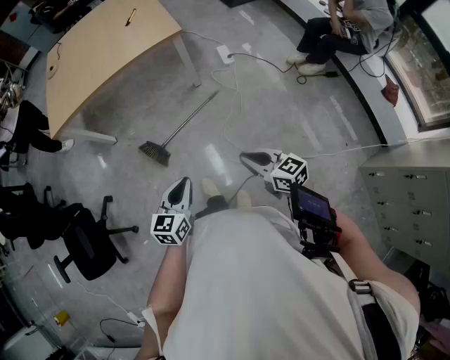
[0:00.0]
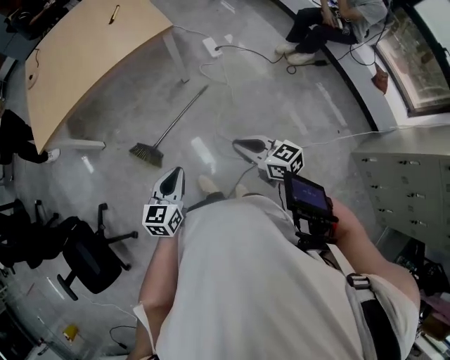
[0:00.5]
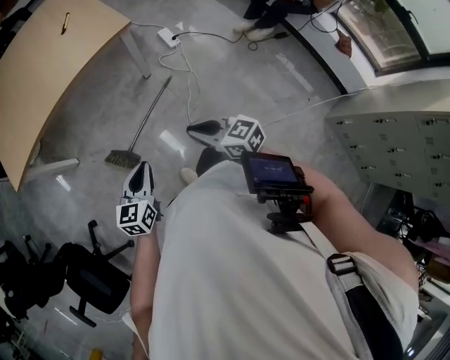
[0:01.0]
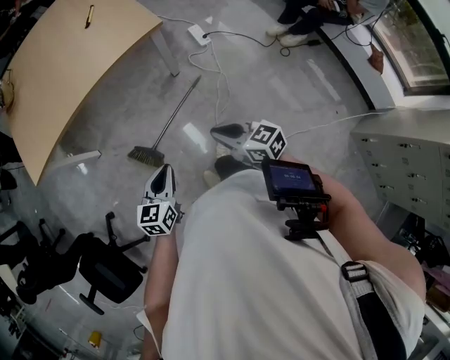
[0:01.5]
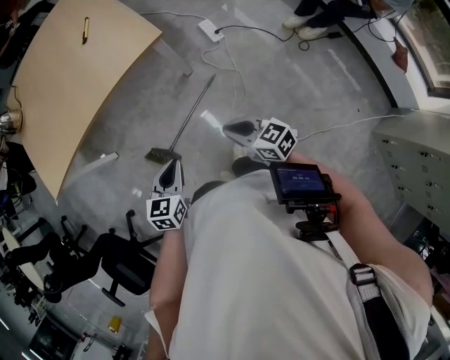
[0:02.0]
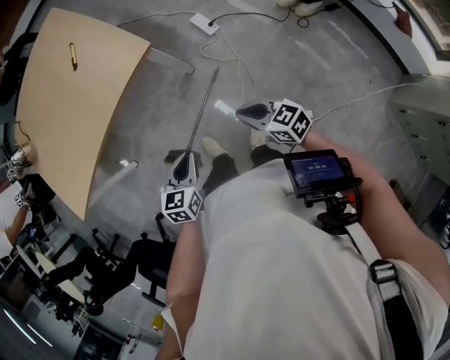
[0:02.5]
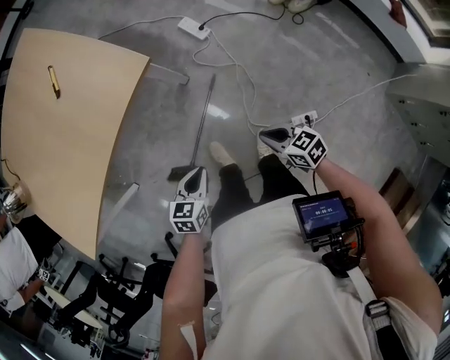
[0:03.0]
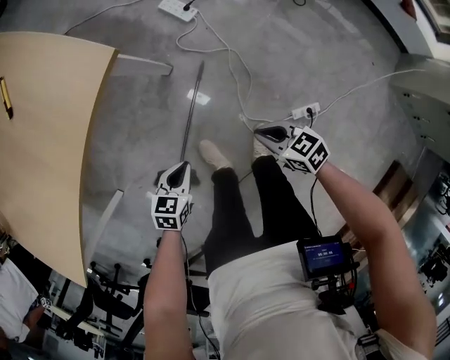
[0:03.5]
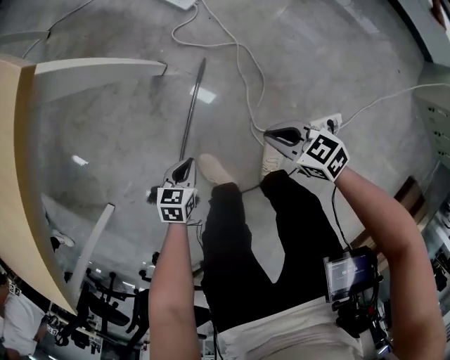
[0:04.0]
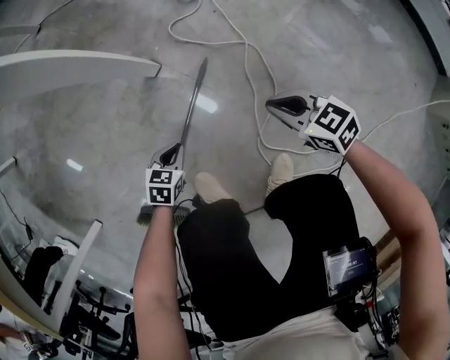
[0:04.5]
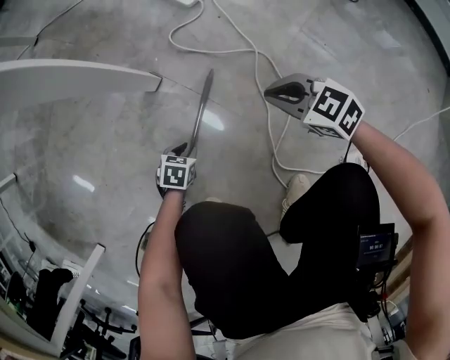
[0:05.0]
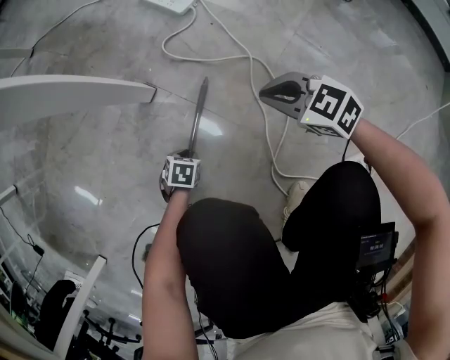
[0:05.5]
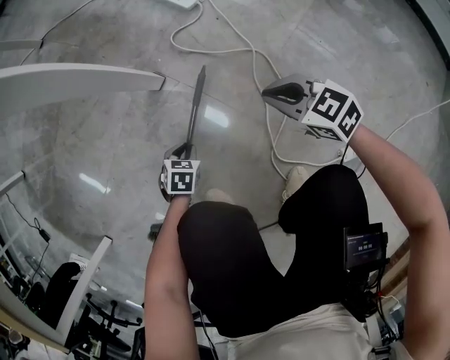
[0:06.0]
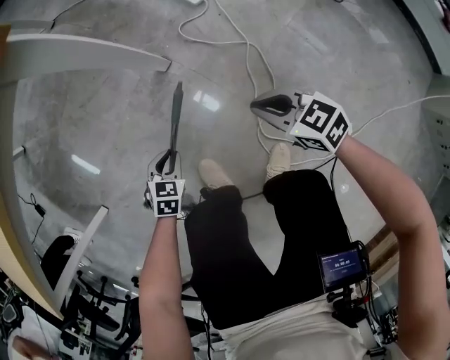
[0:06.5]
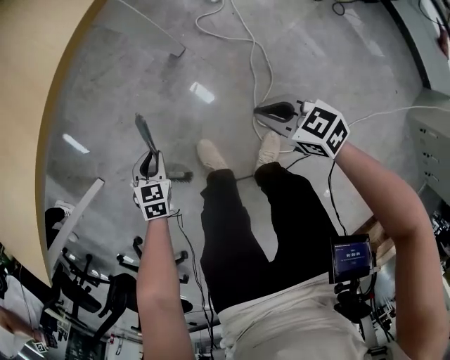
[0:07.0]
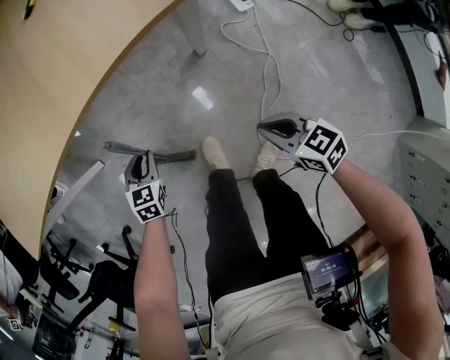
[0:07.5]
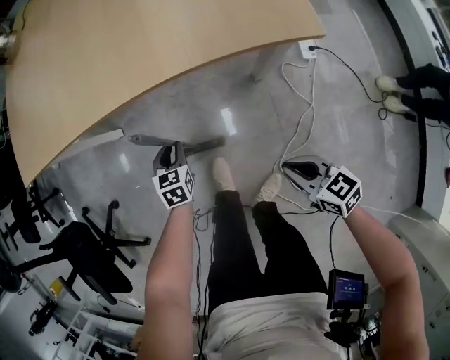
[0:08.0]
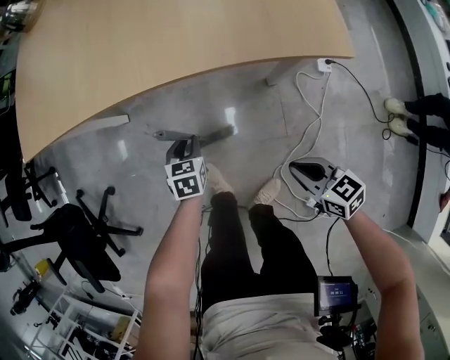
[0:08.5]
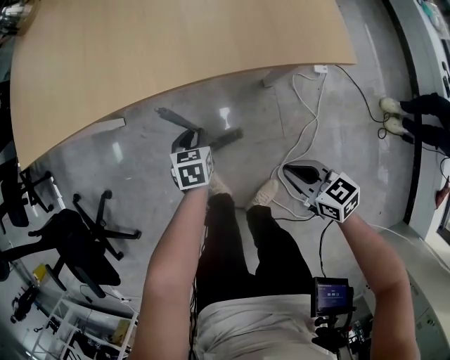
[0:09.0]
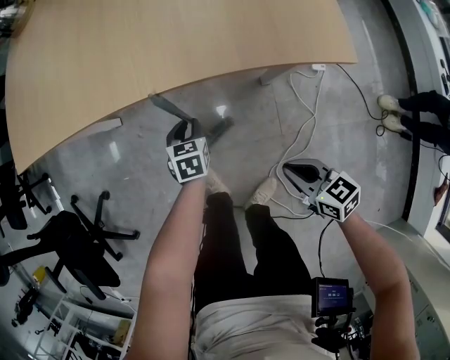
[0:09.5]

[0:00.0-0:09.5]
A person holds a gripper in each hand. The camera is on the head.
0:00.0 to 0:02.0: Both grippers move forward, about 25 cm.
0:02.0 to 0:04.0: The two grippers go approximately 35 cm downward. The right gripper changes its angle by approximately 20 degrees; the left gripper changes its angle by some 40 degrees.
0:04.0 to 0:05.5: The left gripper heads downward, covering roughly 30 cm, and changes its angle by roughly 20 degrees. The right gripper goes about 20 cm downward, and rotates roughly 20 degrees.
0:05.5 to 0:07.5: The left gripper moves upward, about 20 cm, and rotates roughly 40 degrees. Meanwhile the right gripper goes some 5 cm upward, and swivels about 20 degrees.
0:07.5 to 0:09.5: The left gripper changes place by about 5 cm, and rotates approximately 30 degrees, while the right gripper shifts approximately 5 cm to the left.

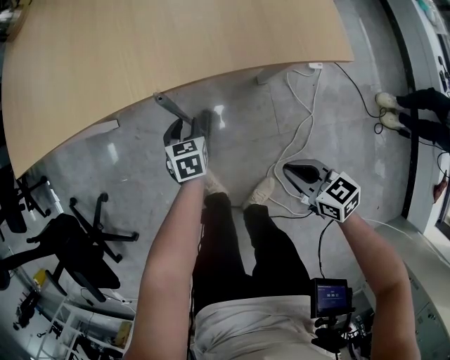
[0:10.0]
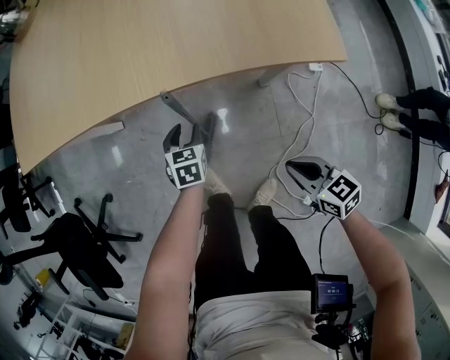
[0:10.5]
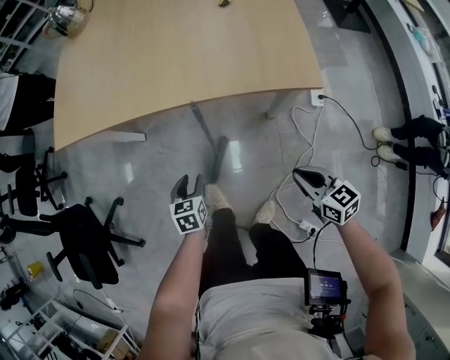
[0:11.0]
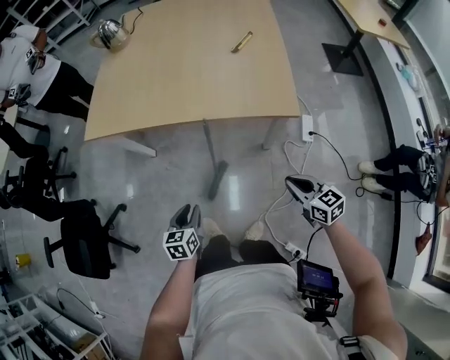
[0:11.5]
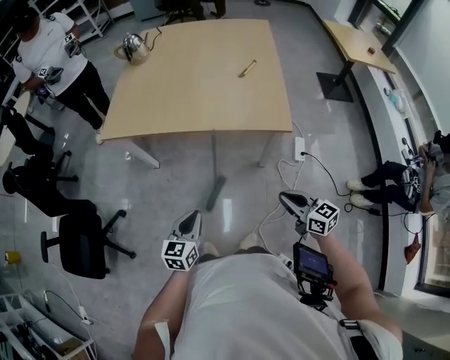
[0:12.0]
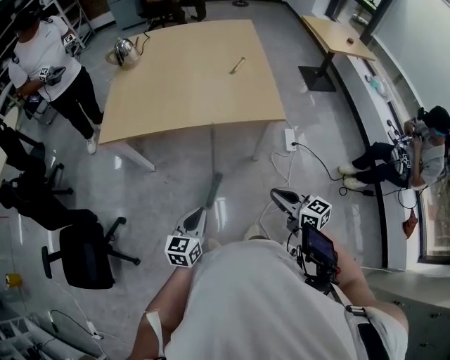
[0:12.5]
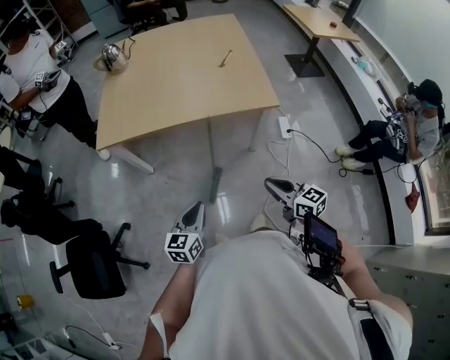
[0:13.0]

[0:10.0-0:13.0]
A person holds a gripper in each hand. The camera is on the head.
0:10.0 to 0:11.5: The left gripper shifts about 30 cm backward, upward and to the left, and rotates some 20 degrees. Meanwhile the right gripper goes approximately 15 cm upward.
0:11.5 to 0:13.0: The right gripper moves to the left, backward and upward, about 20 cm. The left gripper travels upward and backward by roughly 15 cm, swivels roughly 30 degrees, and closes.

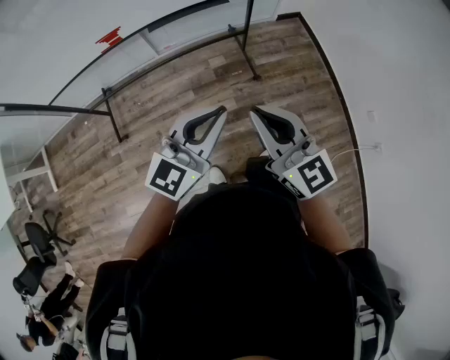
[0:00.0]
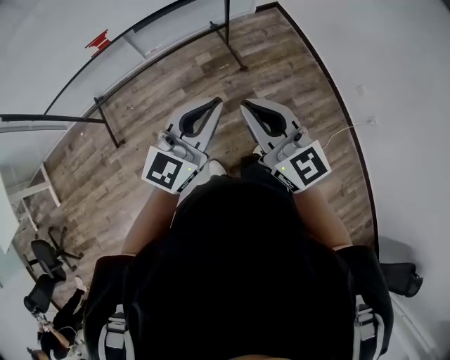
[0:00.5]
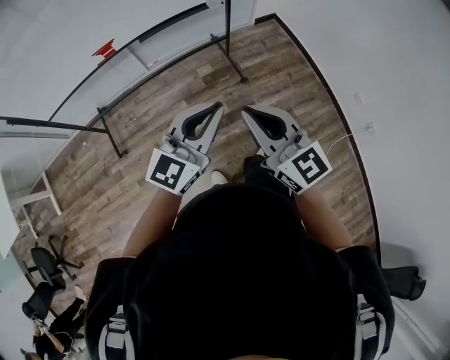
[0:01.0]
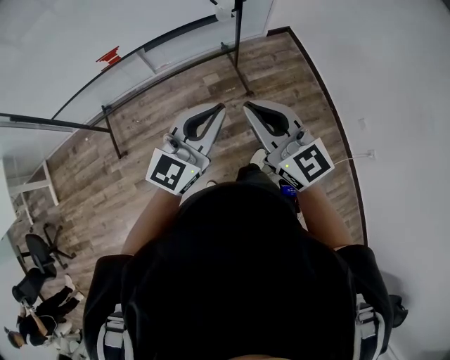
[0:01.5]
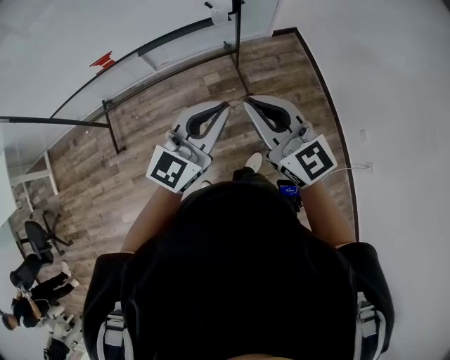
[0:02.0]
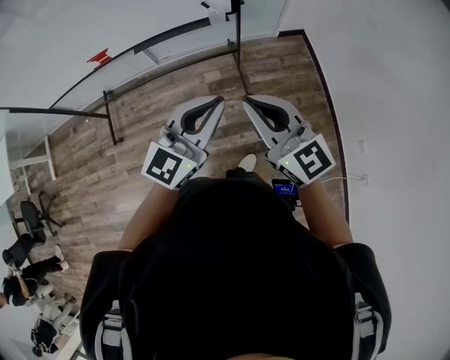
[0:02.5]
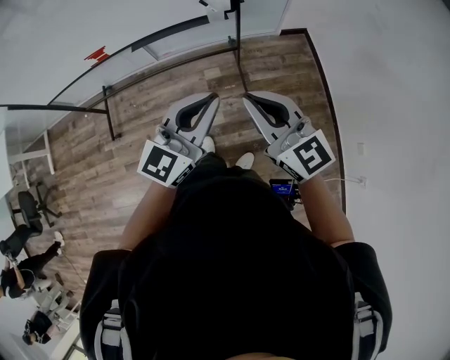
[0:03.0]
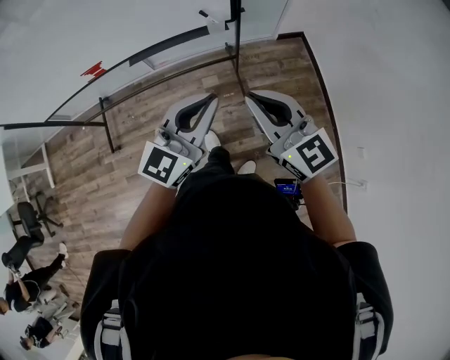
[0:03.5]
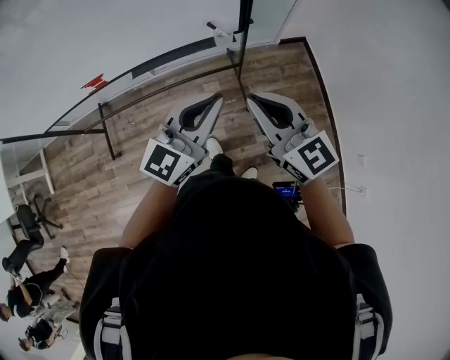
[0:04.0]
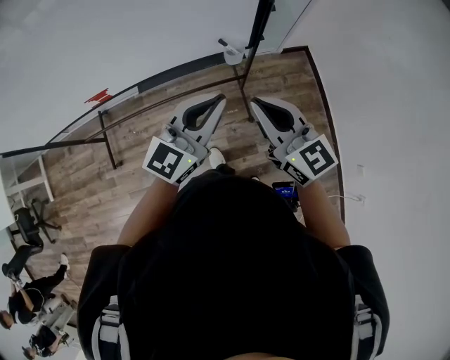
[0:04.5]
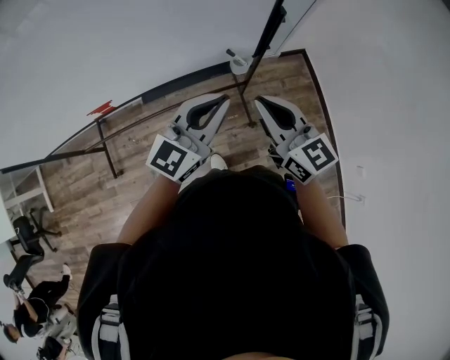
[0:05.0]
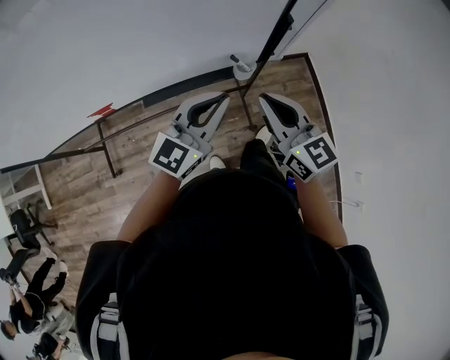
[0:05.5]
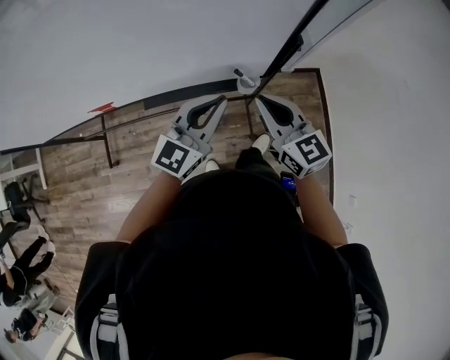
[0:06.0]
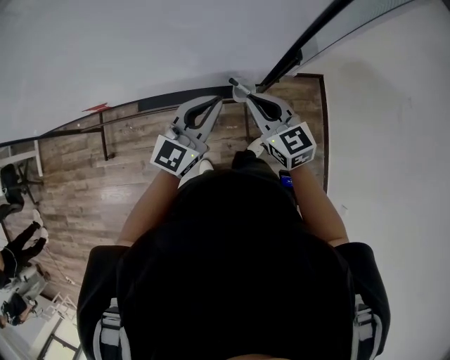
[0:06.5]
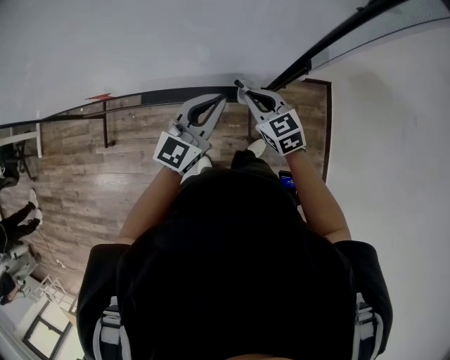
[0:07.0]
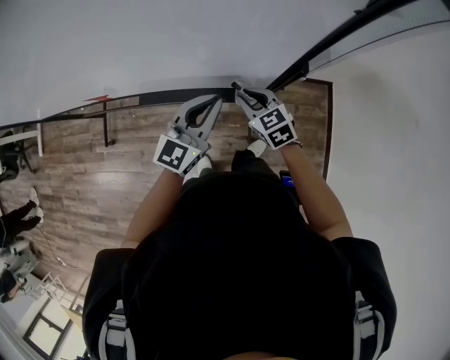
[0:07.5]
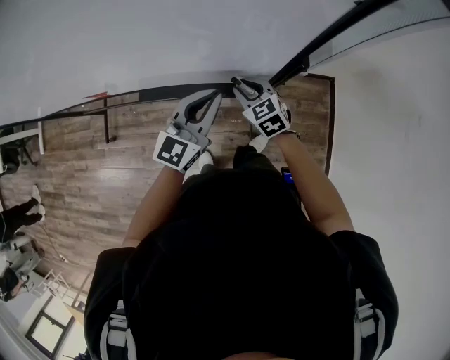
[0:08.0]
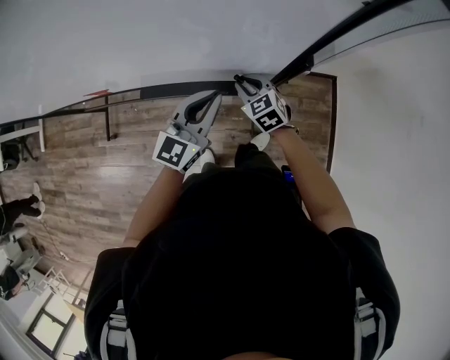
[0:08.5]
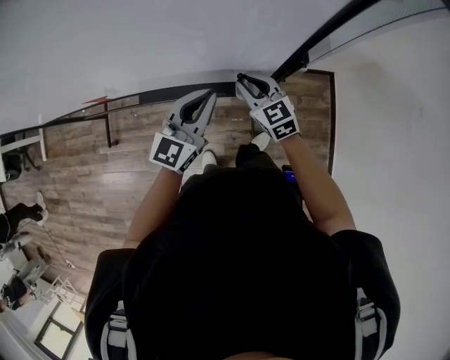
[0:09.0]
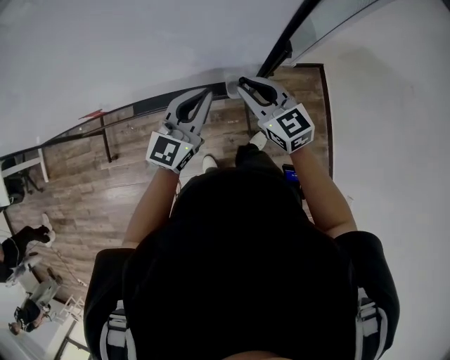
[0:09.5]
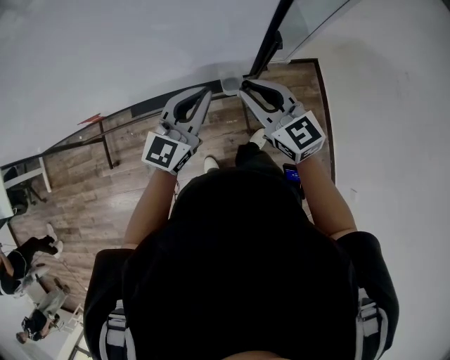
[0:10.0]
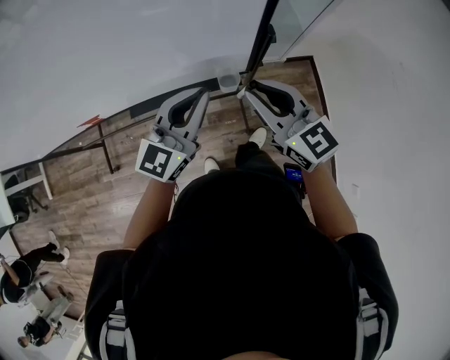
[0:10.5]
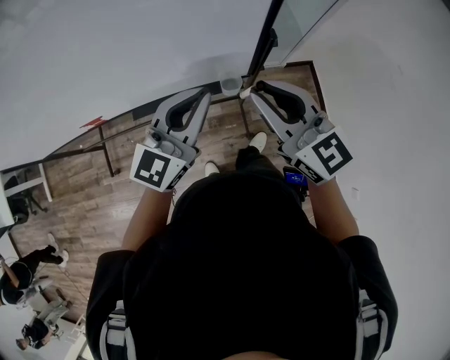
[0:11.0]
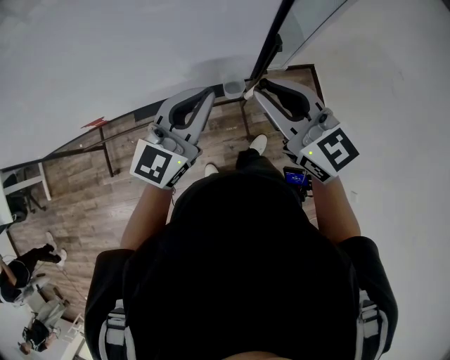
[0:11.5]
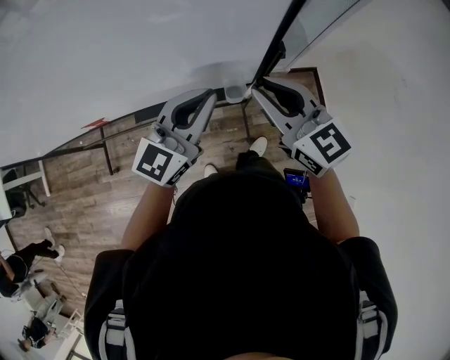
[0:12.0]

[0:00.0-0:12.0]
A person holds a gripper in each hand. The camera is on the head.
0:00.0 to 0:02.0: Both grippers move to the right and forward, roughly 15 cm.
0:02.0 to 0:04.0: Both grippers move forward, approximately 25 cm.
0:04.0 to 0:06.0: The two grippers go some 25 cm forward.
0:06.0 to 0:08.0: The right gripper goes about 20 cm downward and forward, rotates roughly 30 degrees, and opens its fingers. Meanwhile the left gripper travels forward and downward by some 10 cm.
0:08.0 to 0:10.0: The right gripper is displaced upward and backward by roughly 20 cm, and rotates roughly 30 degrees.
0:10.0 to 0:12.0: The two grippers go approximately 10 cm upward.

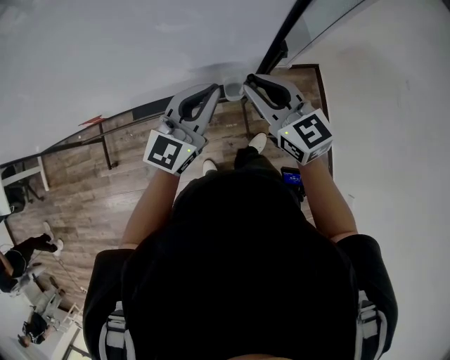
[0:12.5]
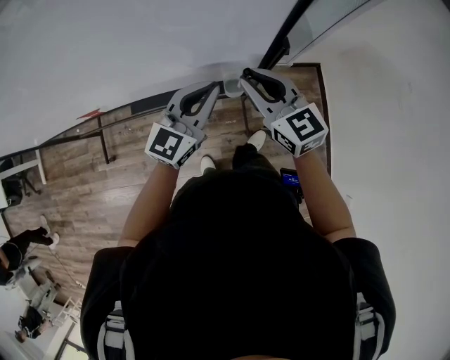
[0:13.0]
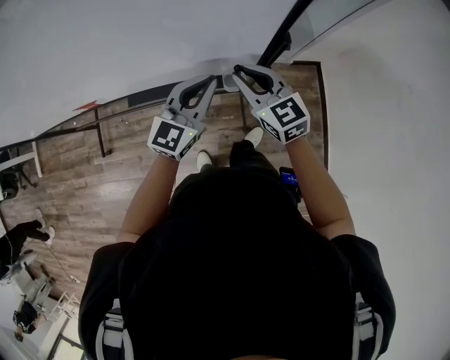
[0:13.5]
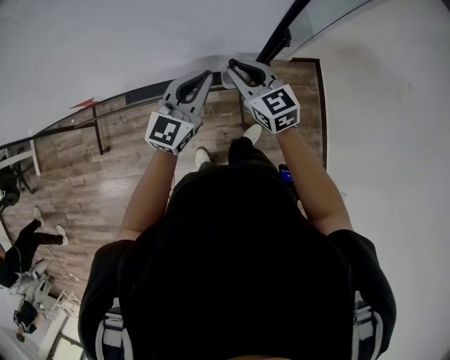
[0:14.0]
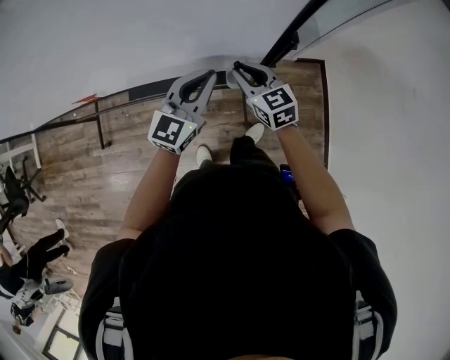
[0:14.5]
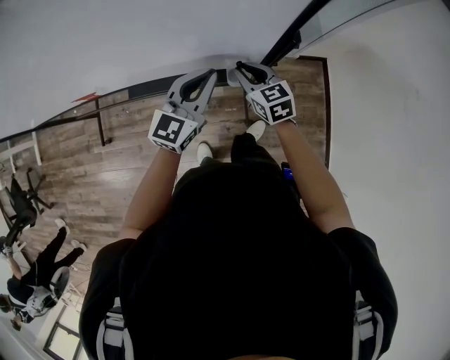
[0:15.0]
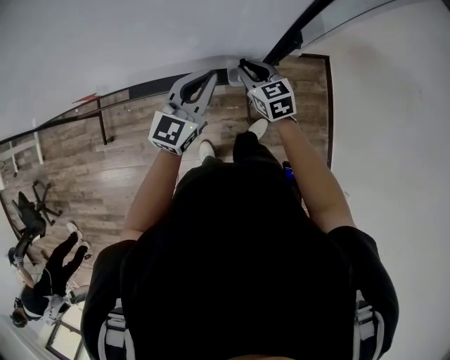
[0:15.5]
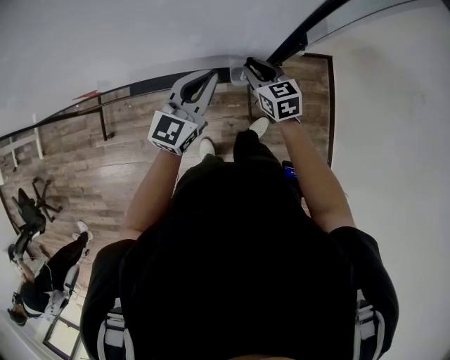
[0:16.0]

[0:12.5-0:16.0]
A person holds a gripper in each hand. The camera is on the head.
0:12.5 to 0:14.5: The right gripper travels downward by approximately 15 cm. Meanwhile the left gripper heads downward, covering approximately 5 cm.
0:14.5 to 0:16.0: The right gripper travels downward by approximately 5 cm.
